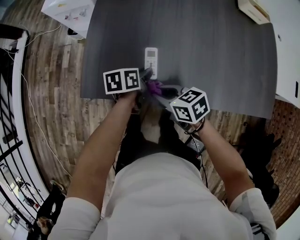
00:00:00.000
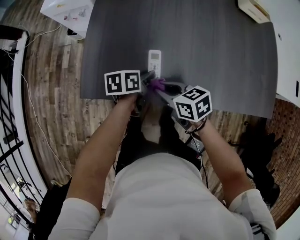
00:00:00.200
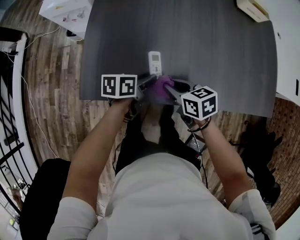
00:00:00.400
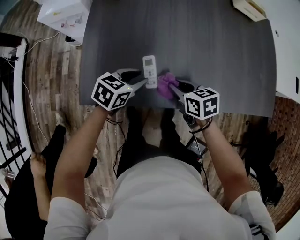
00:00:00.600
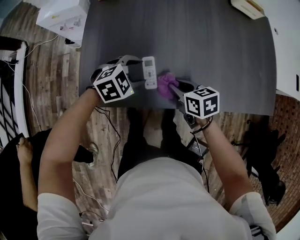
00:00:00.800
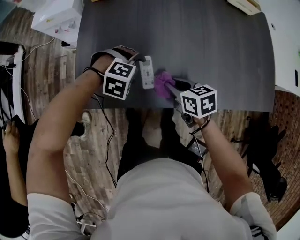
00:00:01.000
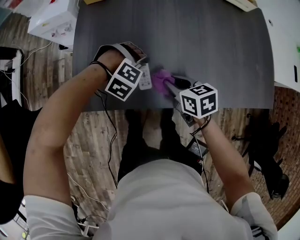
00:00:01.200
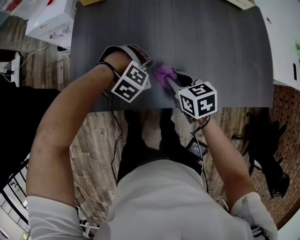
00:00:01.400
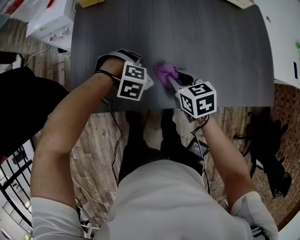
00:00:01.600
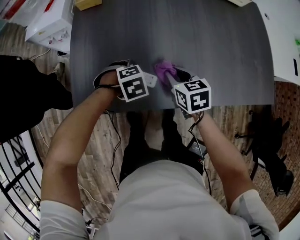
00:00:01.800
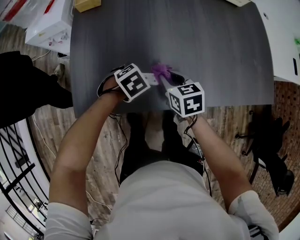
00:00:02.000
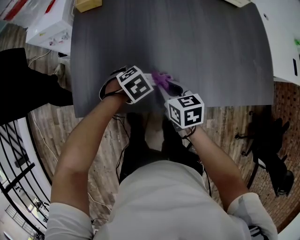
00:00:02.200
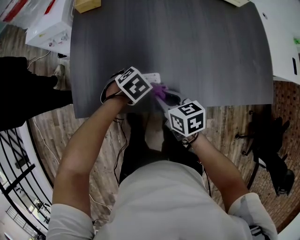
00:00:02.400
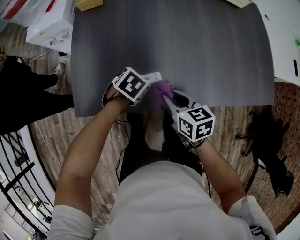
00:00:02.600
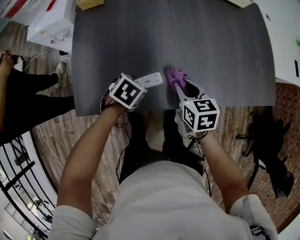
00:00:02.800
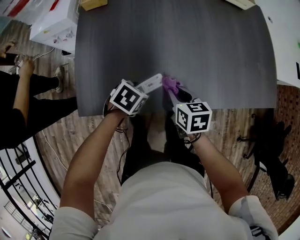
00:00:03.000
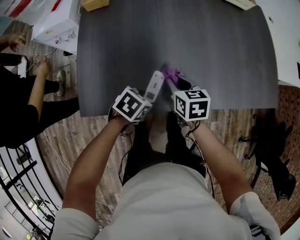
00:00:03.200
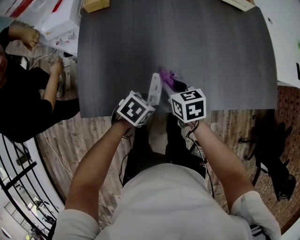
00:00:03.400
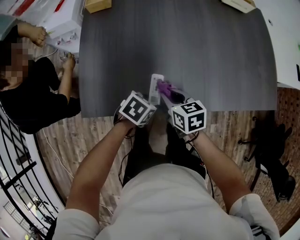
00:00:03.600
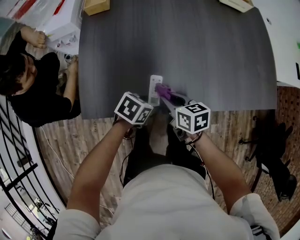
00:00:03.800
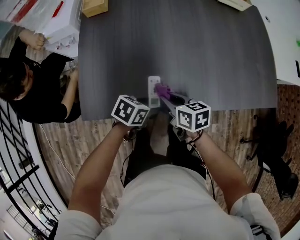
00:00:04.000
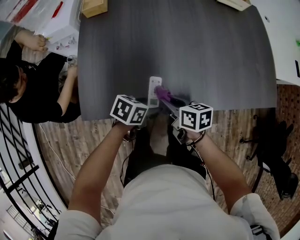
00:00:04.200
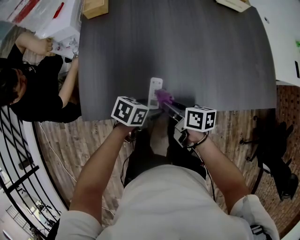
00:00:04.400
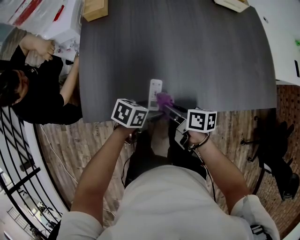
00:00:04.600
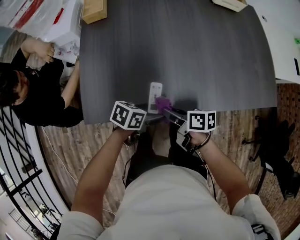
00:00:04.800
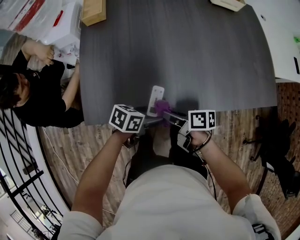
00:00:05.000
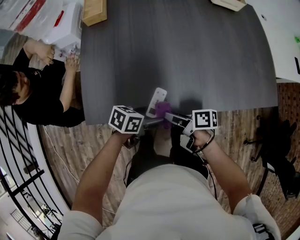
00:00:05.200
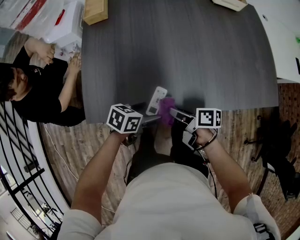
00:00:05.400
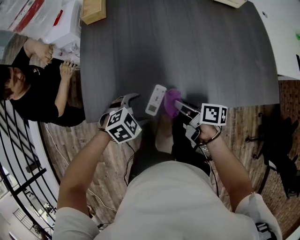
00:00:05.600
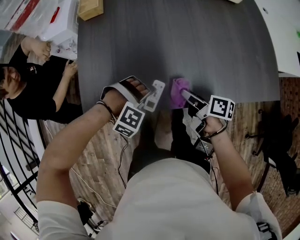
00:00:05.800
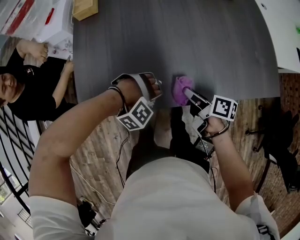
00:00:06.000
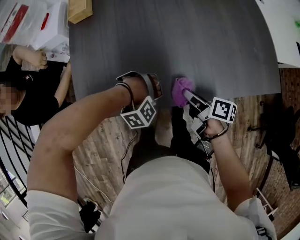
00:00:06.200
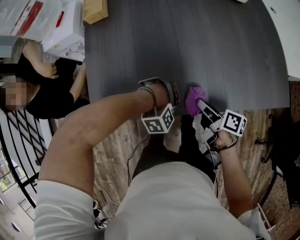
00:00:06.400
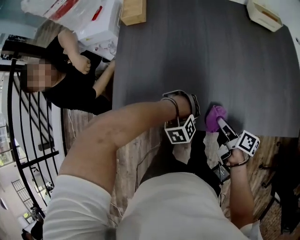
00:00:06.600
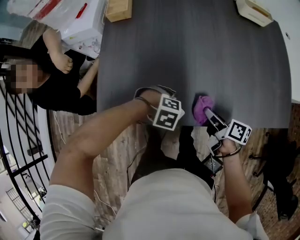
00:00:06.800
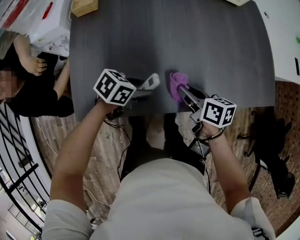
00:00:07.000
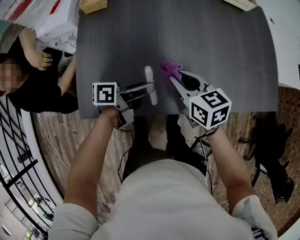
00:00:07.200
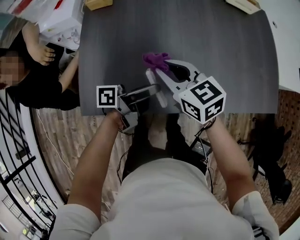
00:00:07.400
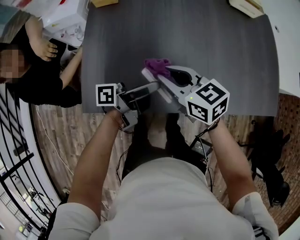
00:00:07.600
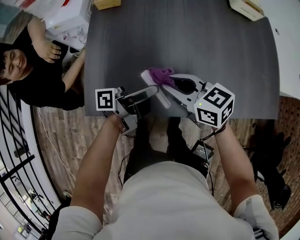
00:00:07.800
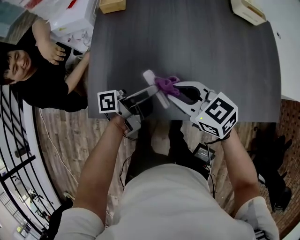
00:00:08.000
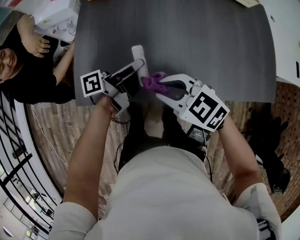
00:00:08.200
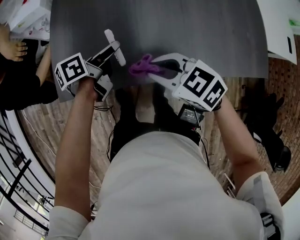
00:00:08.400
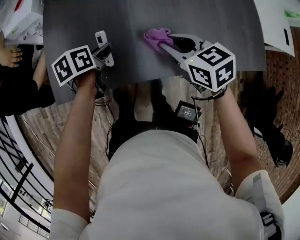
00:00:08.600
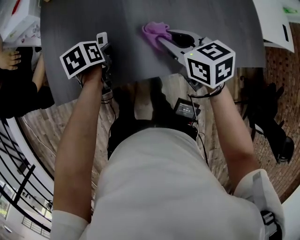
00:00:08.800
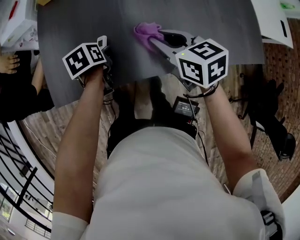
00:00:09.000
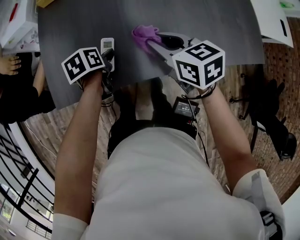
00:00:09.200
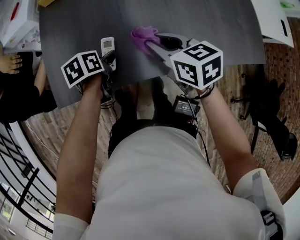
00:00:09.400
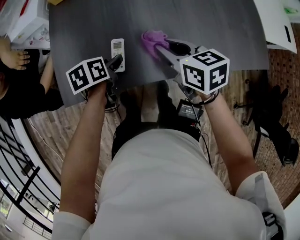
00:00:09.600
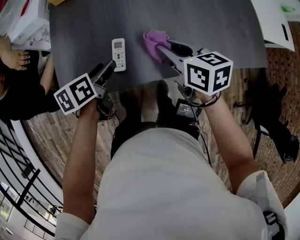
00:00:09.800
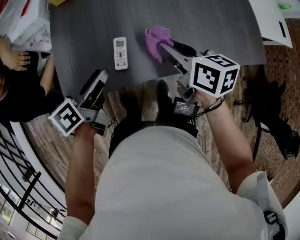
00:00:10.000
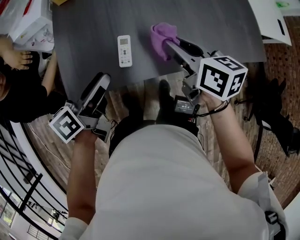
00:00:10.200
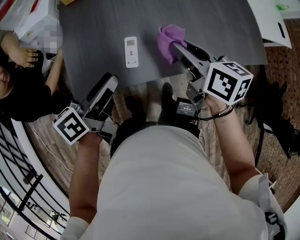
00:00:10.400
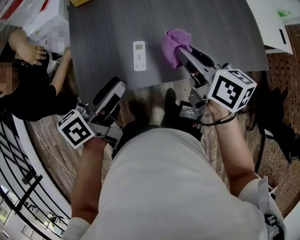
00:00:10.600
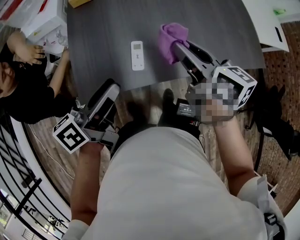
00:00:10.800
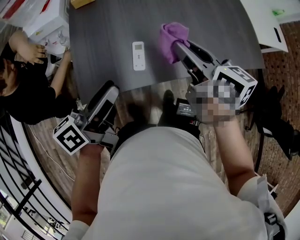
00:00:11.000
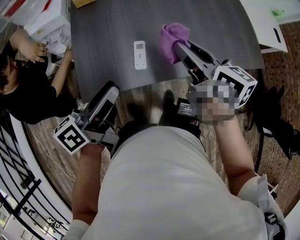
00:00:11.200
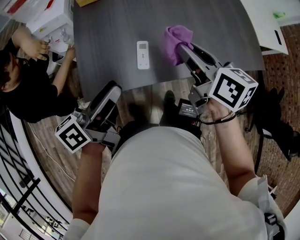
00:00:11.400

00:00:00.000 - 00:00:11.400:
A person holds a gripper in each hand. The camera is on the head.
00:00:00.000 - 00:00:01.400: The left gripper twists roughly 140 degrees clockwise, seen from behind, and opens its fingers. Meanwhile the right gripper shifts by some 15 cm, and turns by about 30 degrees.
00:00:01.400 - 00:00:02.800: The left gripper rotates around the line of its fingers by about 90 degrees, counterclockwise from behind.
00:00:02.800 - 00:00:04.200: The right gripper shifts by some 10 cm, and rotates some 30 degrees. The left gripper changes place by roughly 10 cm, and turns by roughly 30 degrees.
00:00:04.200 - 00:00:05.600: The right gripper ends up approximately 5 cm from where it was, and turns by some 20 degrees, while the left gripper rolls clockwise, seen from behind, by about 50 degrees.
00:00:05.600 - 00:00:07.200: The left gripper shifts by about 10 cm, tilts its fingers approximately 50 degrees upward, and closes its fingers; the right gripper shifts by some 15 cm, and twists about 50 degrees counterclockwise, seen from behind.
00:00:07.200 - 00:00:08.600: The right gripper reaches approximately 10 cm backward, then returns. The left gripper travels to the left and downward by approximately 10 cm, and tips its fingers downward by approximately 40 degrees.
00:00:08.600 - 00:00:10.000: The left gripper travels upward and backward by some 15 cm, and changes its angle by approximately 30 degrees. Meanwhile the right gripper shifts by some 5 cm, and rotates approximately 30 degrees.
00:00:10.000 - 00:00:11.400: The left gripper is displaced upward and backward by approximately 10 cm; the right gripper moves upward, about 10 cm.

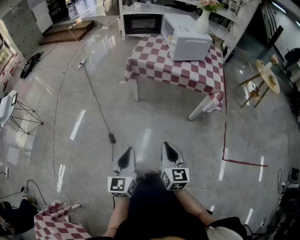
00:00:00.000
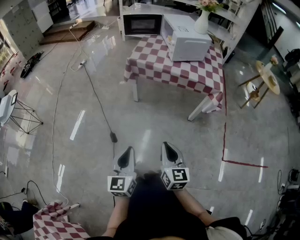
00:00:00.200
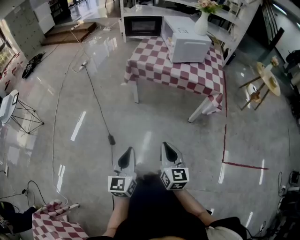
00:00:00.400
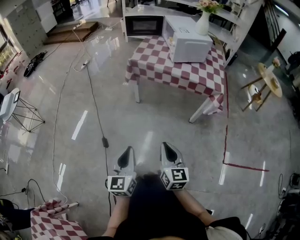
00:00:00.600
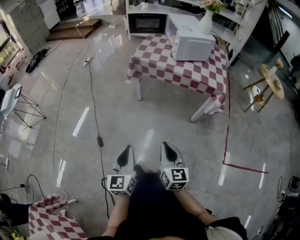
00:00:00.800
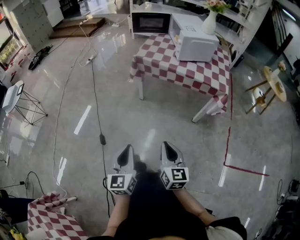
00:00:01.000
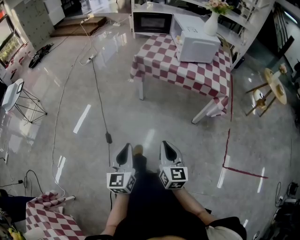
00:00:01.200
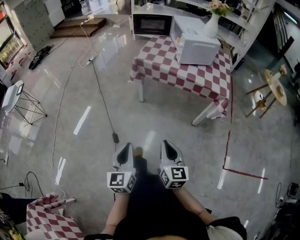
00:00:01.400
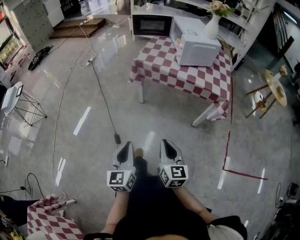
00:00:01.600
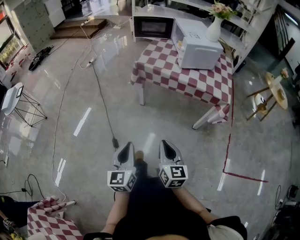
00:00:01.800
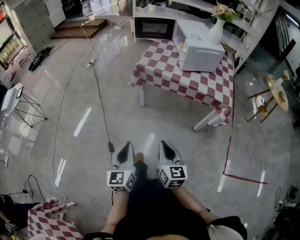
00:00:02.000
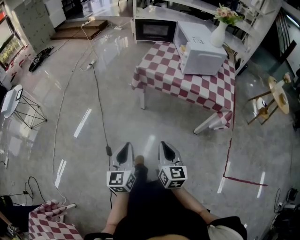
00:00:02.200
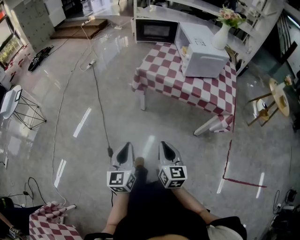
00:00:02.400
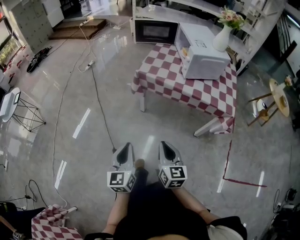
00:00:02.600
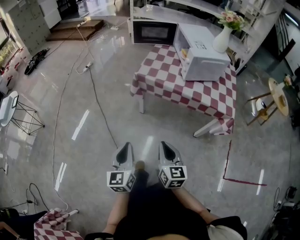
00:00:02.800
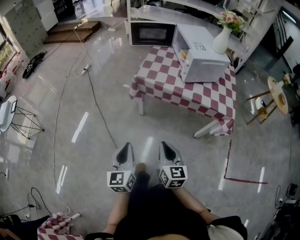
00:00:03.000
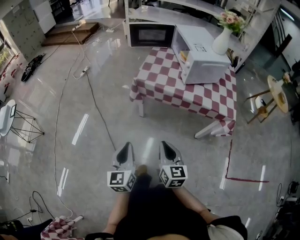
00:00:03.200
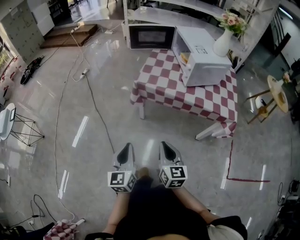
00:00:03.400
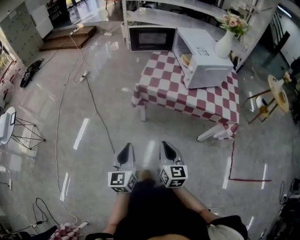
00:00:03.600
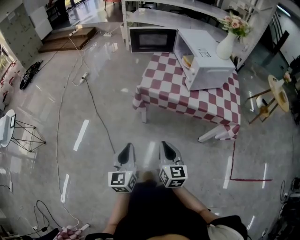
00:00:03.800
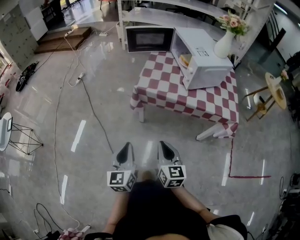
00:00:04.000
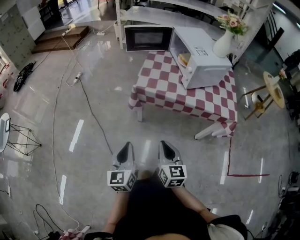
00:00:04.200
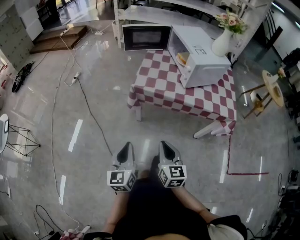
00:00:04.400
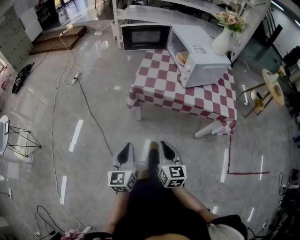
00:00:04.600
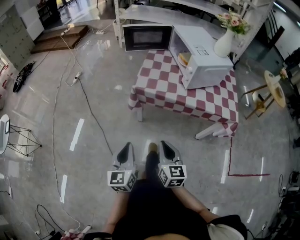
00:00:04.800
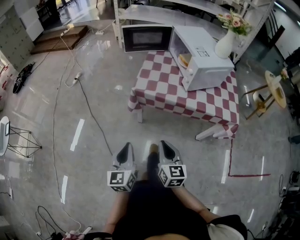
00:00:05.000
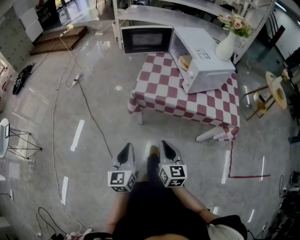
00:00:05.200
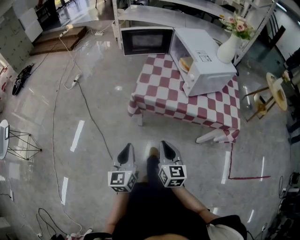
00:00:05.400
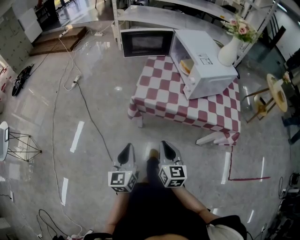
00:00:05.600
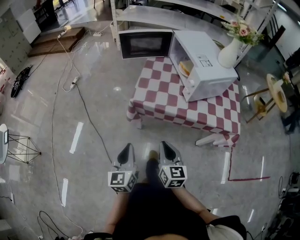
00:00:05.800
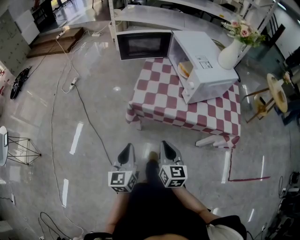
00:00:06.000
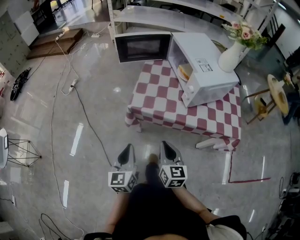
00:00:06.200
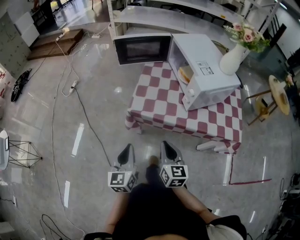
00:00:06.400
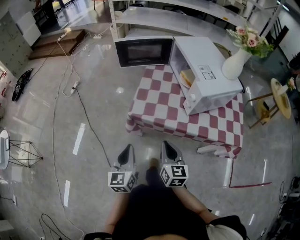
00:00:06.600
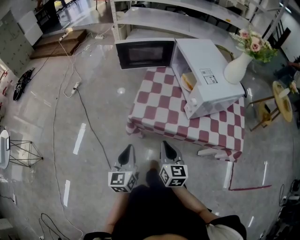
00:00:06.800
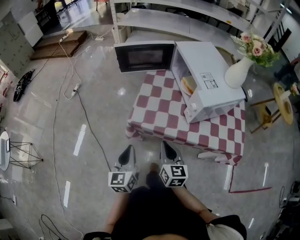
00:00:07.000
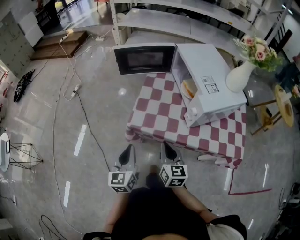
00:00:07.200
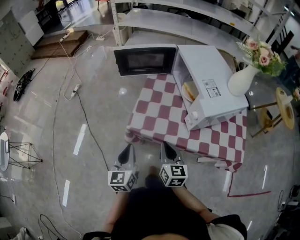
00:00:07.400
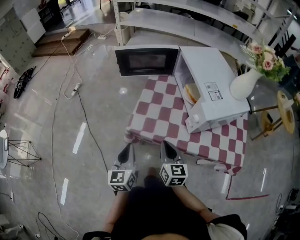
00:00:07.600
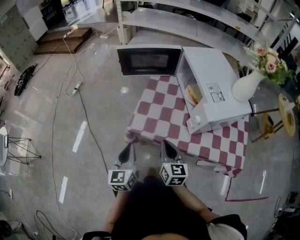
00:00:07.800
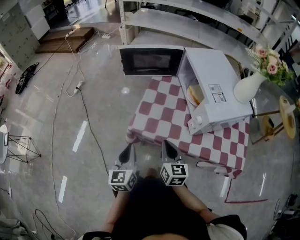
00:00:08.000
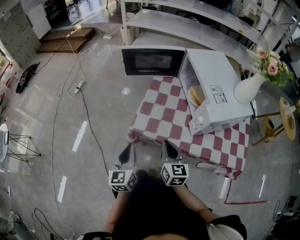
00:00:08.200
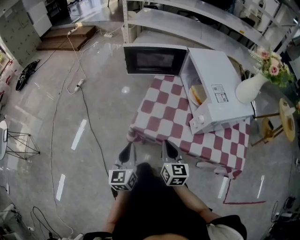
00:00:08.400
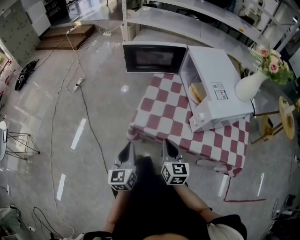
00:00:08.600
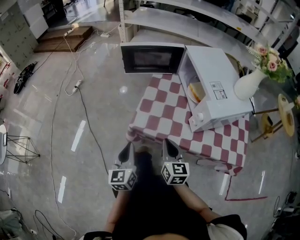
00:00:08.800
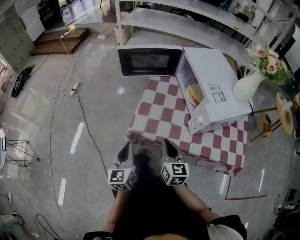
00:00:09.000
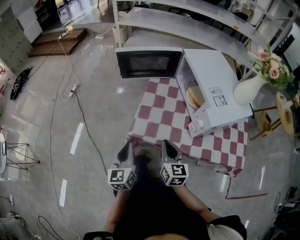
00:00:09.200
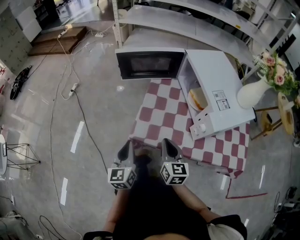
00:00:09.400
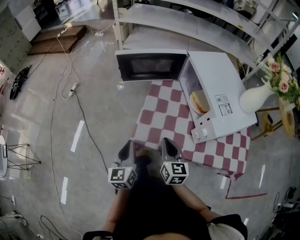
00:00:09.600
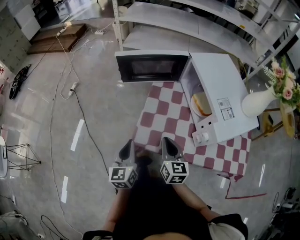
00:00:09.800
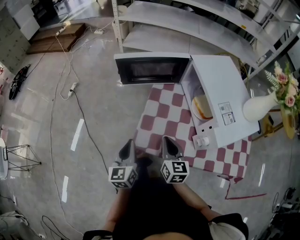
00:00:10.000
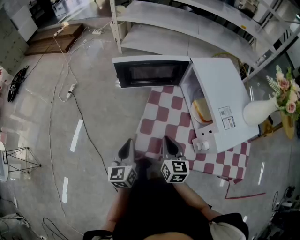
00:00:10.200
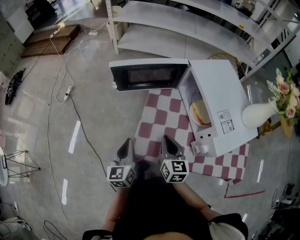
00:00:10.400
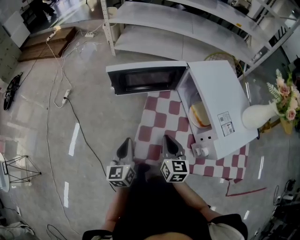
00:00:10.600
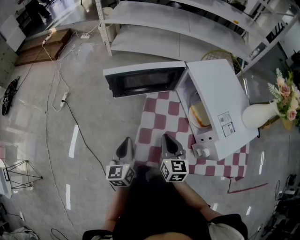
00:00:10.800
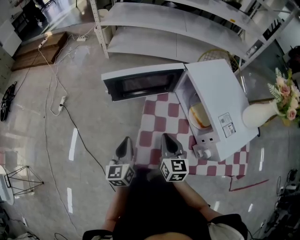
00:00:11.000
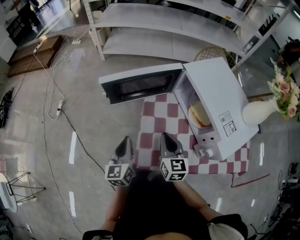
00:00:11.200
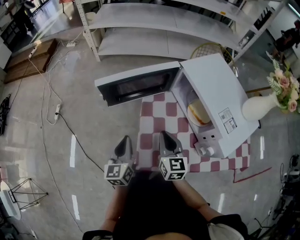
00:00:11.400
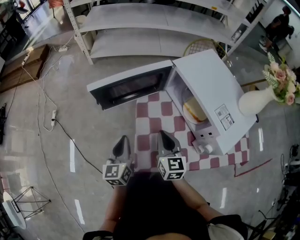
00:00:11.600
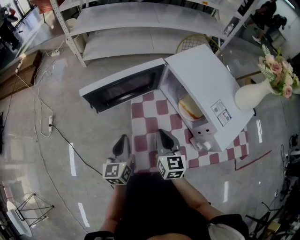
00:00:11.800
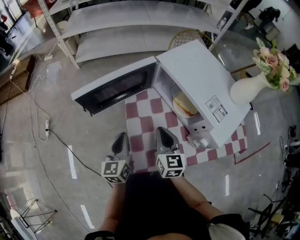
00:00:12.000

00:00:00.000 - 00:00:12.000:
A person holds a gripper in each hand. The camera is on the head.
00:00:00.000 - 00:00:01.600: The grippers make only small movements.
00:00:01.600 - 00:00:03.000: Both grippers move forward, some 15 cm.
00:00:03.000 - 00:00:04.400: The grippers both shift forward by approximately 10 cm.
00:00:04.400 - 00:00:06.000: Both grippers travel together forward, approximately 15 cm.
00:00:06.000 - 00:00:07.600: Both grippers travel together forward, about 15 cm.
00:00:07.600 - 00:00:09.000: The grippers stay close to where they were, moving slightly.
00:00:09.000 - 00:00:10.400: Both grippers move forward, some 15 cm.
00:00:10.400 - 00:00:12.000: The left gripper goes approximately 10 cm forward, and turns by approximately 20 degrees. Meanwhile the right gripper moves forward, approximately 5 cm.
